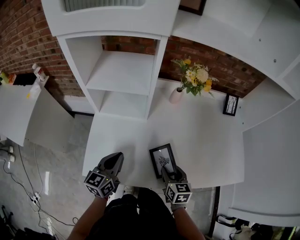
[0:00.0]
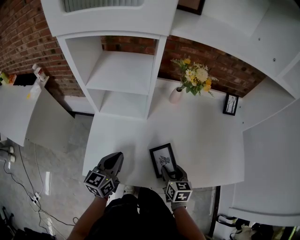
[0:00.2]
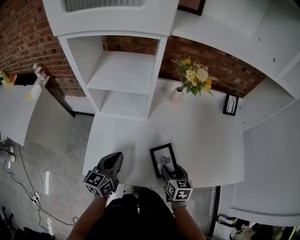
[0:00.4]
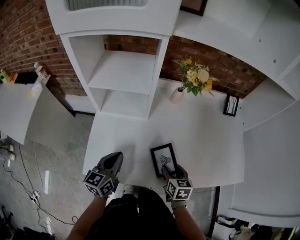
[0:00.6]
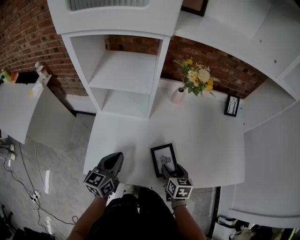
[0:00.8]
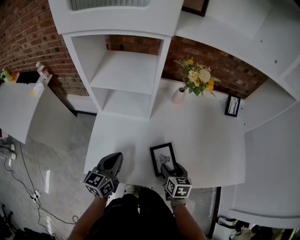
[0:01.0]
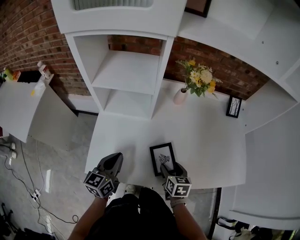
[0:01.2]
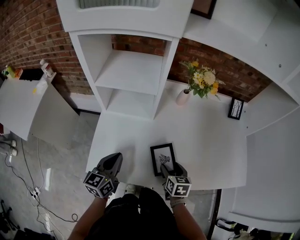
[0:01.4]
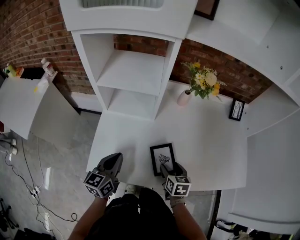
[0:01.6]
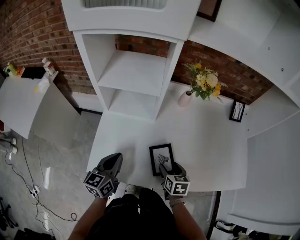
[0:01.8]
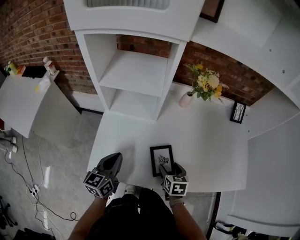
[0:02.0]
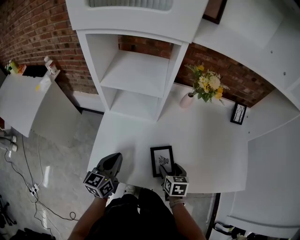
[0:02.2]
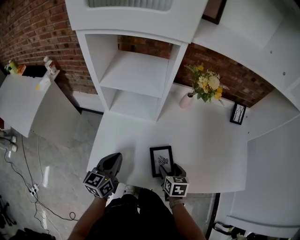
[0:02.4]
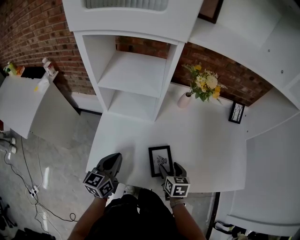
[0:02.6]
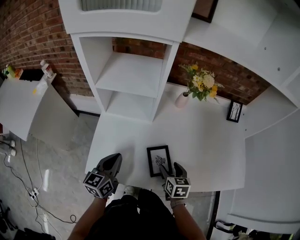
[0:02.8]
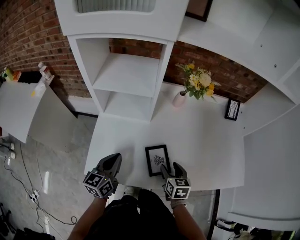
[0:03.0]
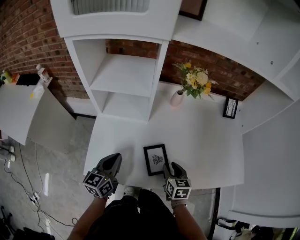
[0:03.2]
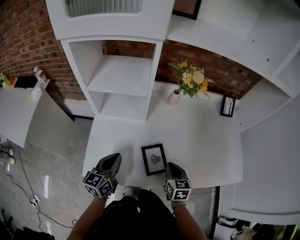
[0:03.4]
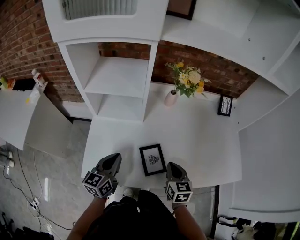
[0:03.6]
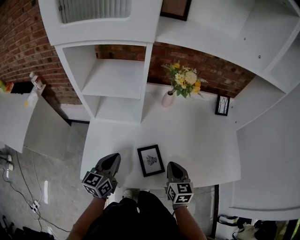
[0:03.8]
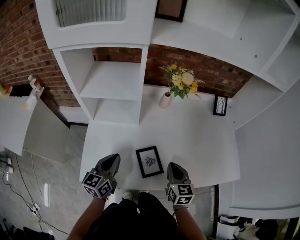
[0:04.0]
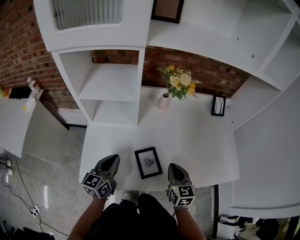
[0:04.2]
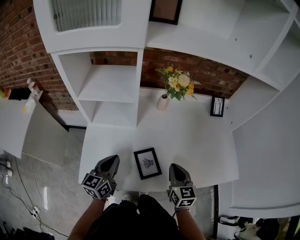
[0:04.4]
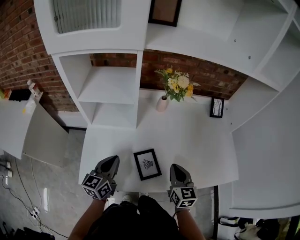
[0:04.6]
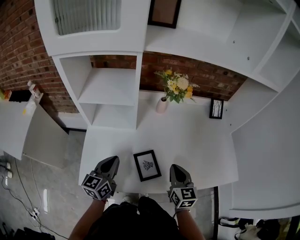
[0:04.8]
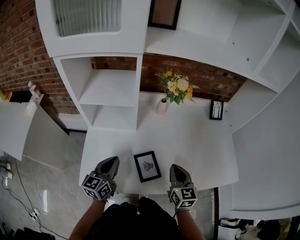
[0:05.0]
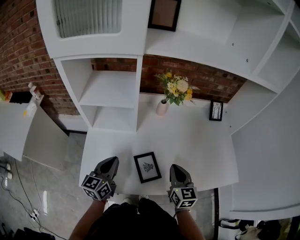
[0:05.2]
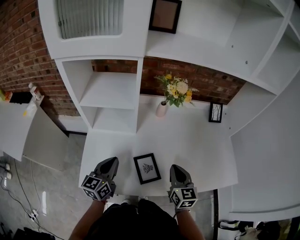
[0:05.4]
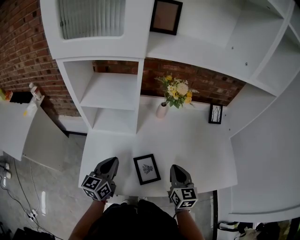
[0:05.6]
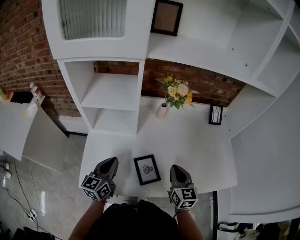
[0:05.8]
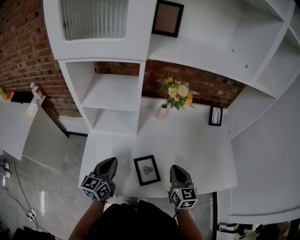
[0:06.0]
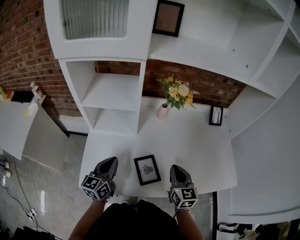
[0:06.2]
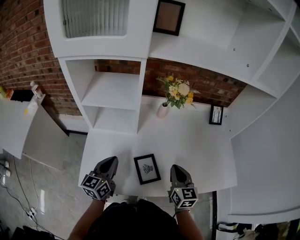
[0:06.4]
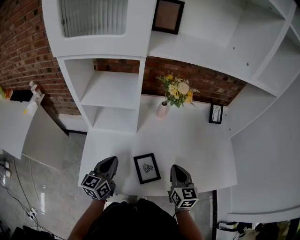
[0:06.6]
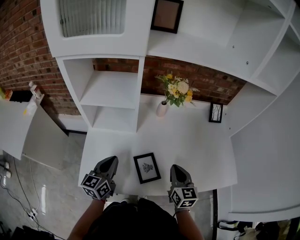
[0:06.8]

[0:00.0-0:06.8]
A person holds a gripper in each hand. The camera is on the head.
0:00.0 to 0:02.8: The grippers stay close to where they were, moving slightly.
0:02.8 to 0:04.0: The right gripper moves upward, approximately 10 cm, and closes its fingers.
0:04.0 to 0:05.4: The grippers move only a little.
0:05.4 to 0:06.8: Neither gripper changes place.

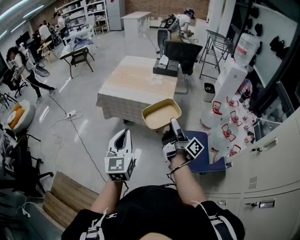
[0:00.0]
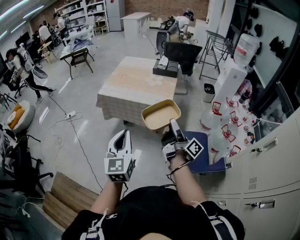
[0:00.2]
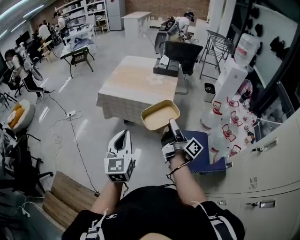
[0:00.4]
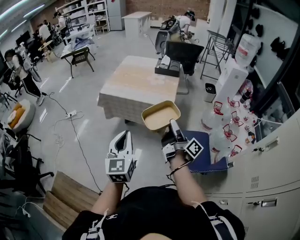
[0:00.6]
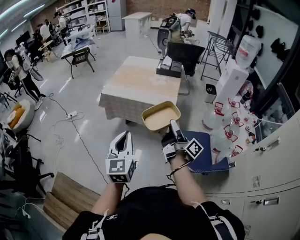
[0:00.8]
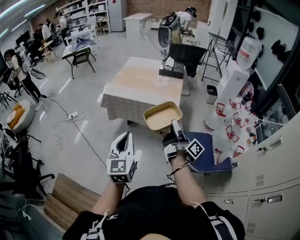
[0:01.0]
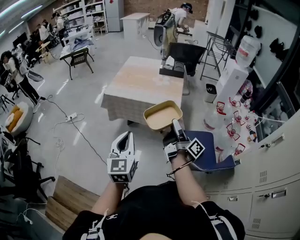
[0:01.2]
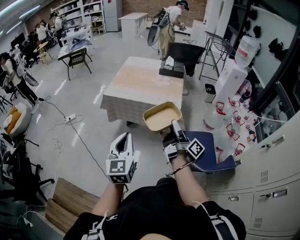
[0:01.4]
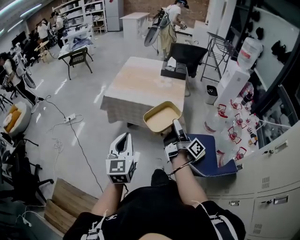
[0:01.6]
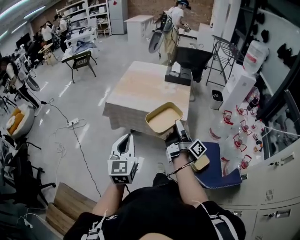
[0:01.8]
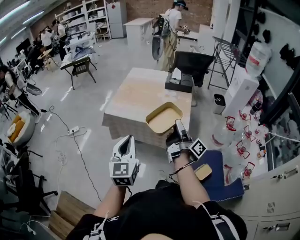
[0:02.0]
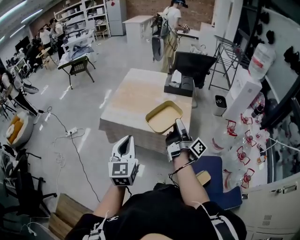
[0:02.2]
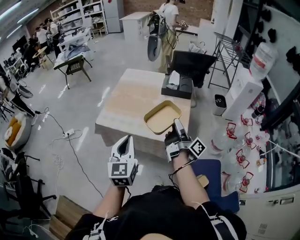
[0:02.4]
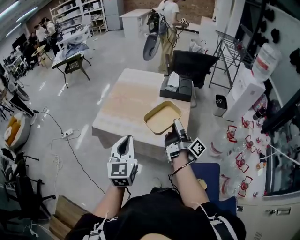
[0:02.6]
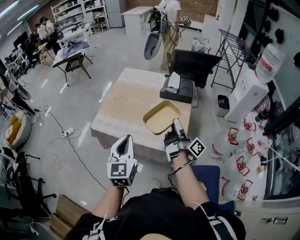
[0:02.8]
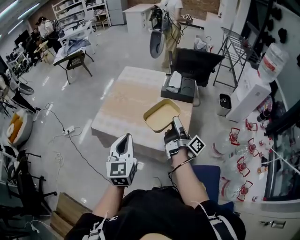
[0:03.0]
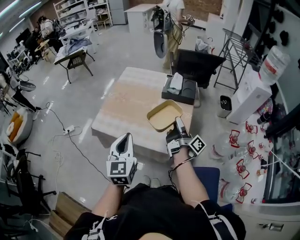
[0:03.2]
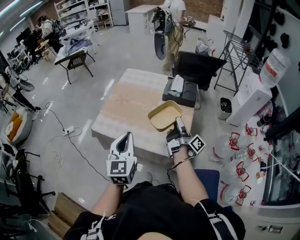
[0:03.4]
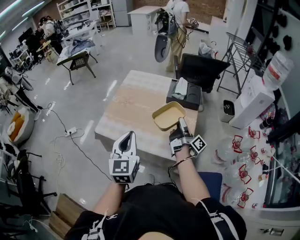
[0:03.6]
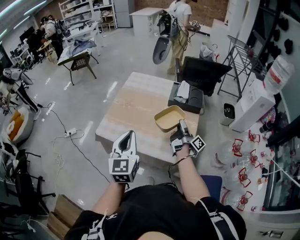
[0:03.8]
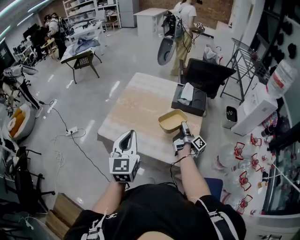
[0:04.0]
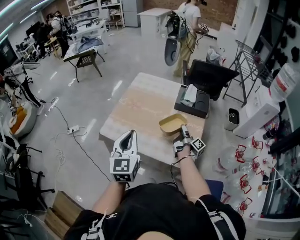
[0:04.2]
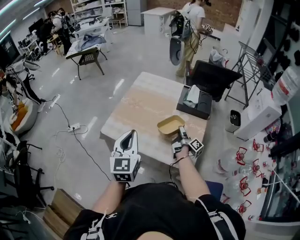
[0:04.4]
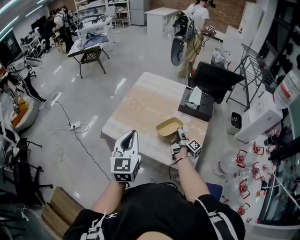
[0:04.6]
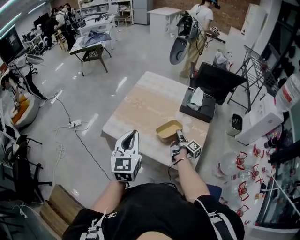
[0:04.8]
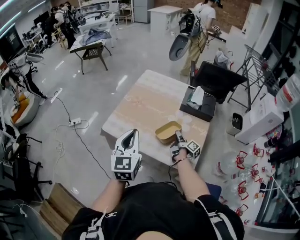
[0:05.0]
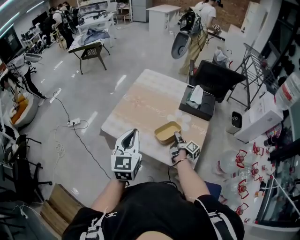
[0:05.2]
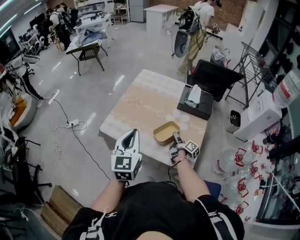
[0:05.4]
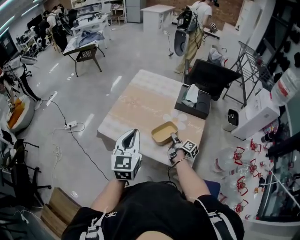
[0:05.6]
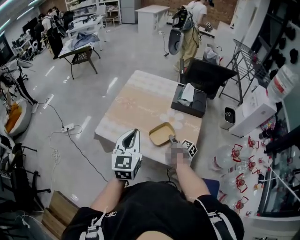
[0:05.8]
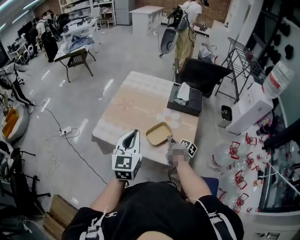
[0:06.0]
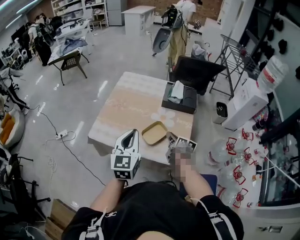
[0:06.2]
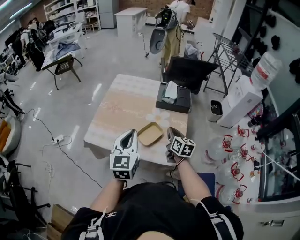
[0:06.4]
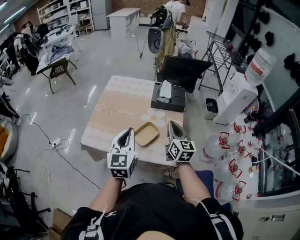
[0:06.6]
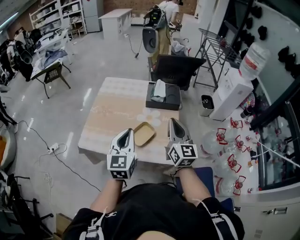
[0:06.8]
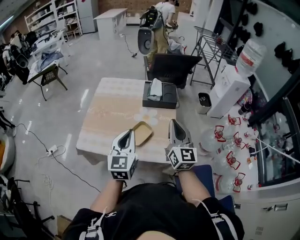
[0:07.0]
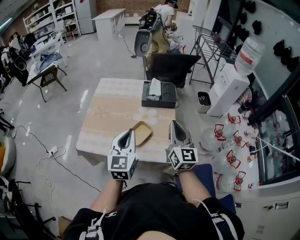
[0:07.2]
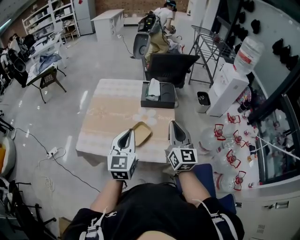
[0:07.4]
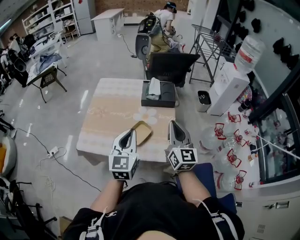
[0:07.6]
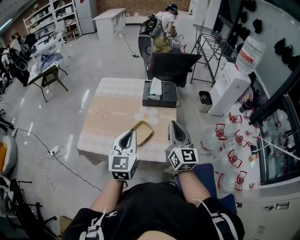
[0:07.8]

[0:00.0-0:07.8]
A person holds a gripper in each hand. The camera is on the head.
0:00.0 to 0:01.6: The left gripper moves approximately 15 cm.
0:01.6 to 0:03.2: The left gripper ends up approximately 50 cm from where it was.
0:03.2 to 0:04.6: The left gripper ends up roughly 10 cm from where it was.
0:04.6 to 0:06.2: The left gripper shifts by roughly 5 cm.
0:06.2 to 0:07.8: The left gripper ends up approximately 10 cm from where it was.

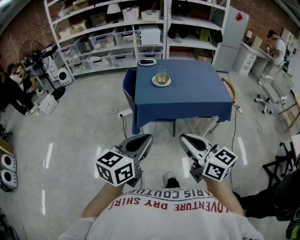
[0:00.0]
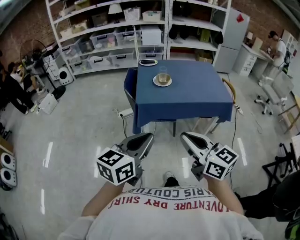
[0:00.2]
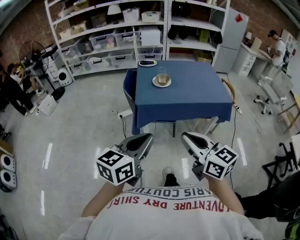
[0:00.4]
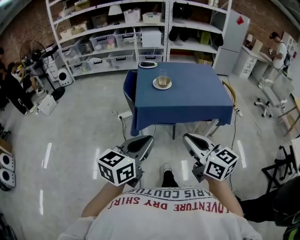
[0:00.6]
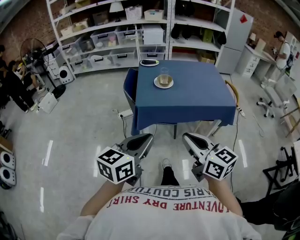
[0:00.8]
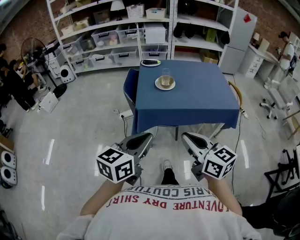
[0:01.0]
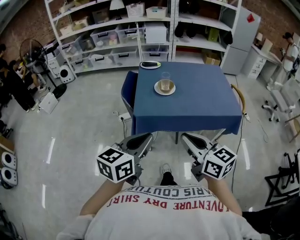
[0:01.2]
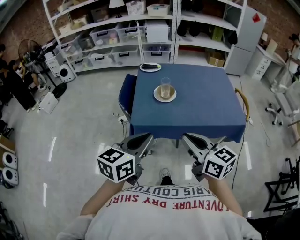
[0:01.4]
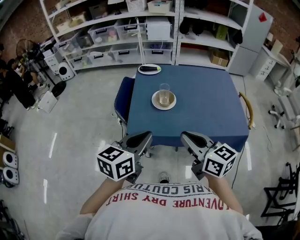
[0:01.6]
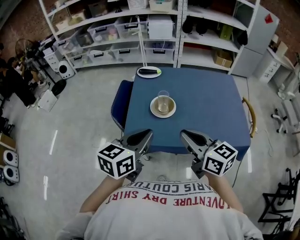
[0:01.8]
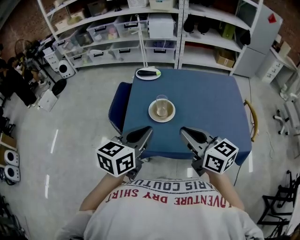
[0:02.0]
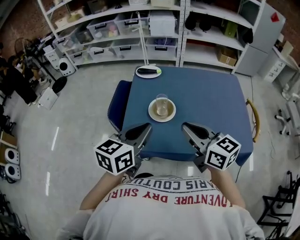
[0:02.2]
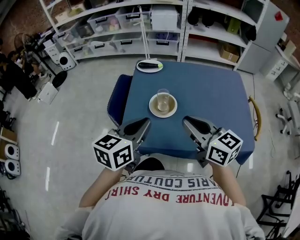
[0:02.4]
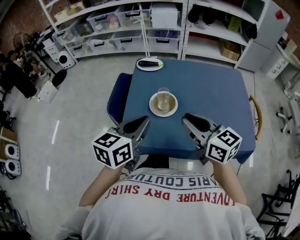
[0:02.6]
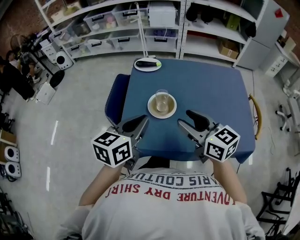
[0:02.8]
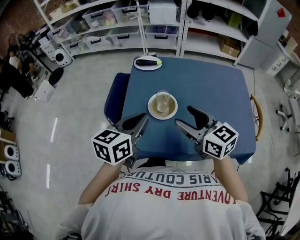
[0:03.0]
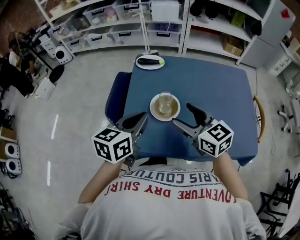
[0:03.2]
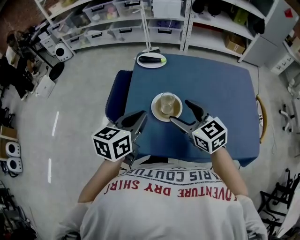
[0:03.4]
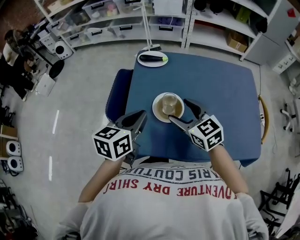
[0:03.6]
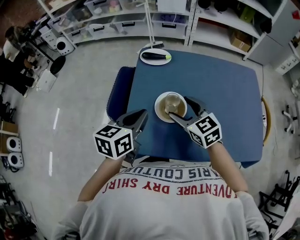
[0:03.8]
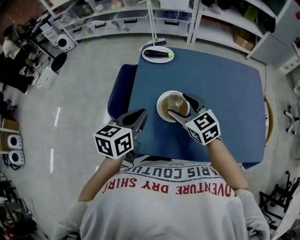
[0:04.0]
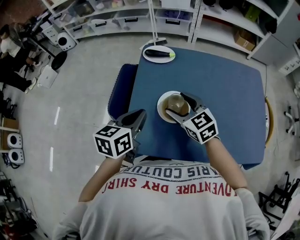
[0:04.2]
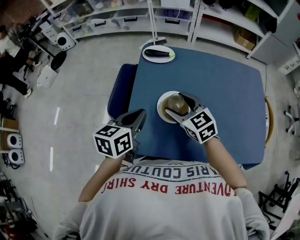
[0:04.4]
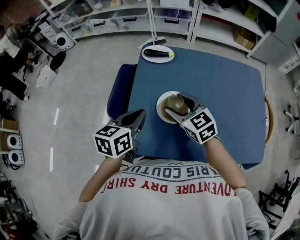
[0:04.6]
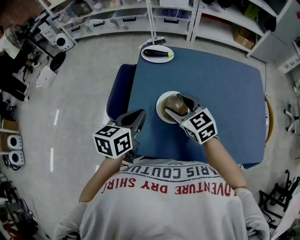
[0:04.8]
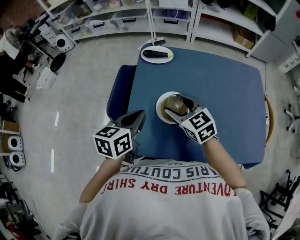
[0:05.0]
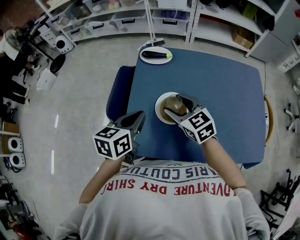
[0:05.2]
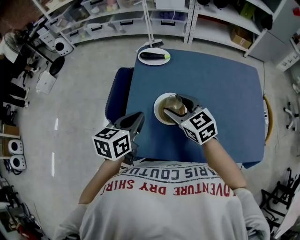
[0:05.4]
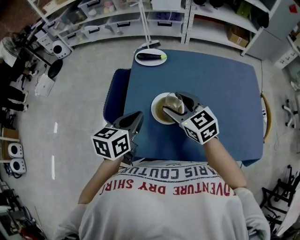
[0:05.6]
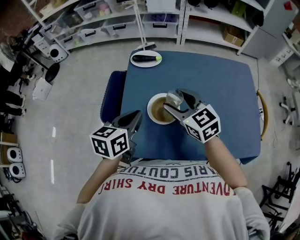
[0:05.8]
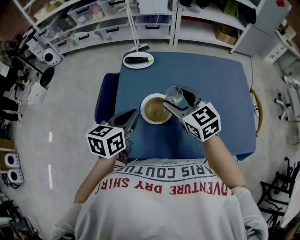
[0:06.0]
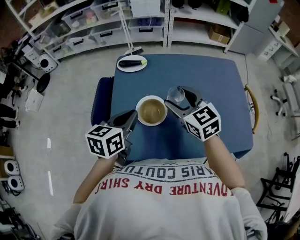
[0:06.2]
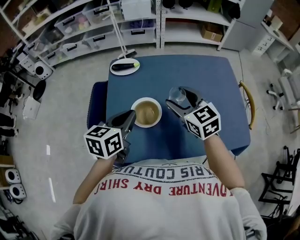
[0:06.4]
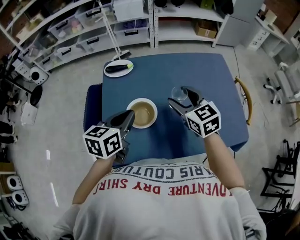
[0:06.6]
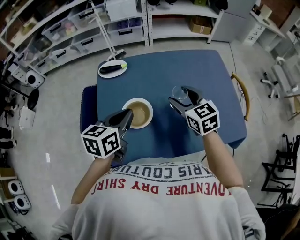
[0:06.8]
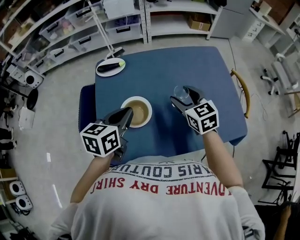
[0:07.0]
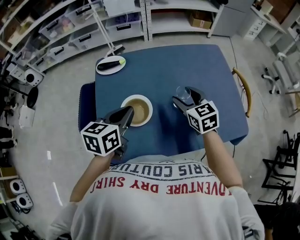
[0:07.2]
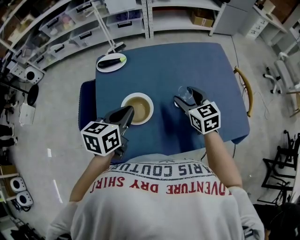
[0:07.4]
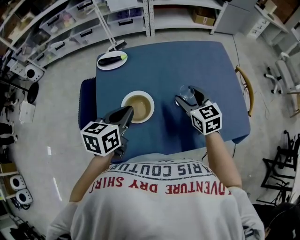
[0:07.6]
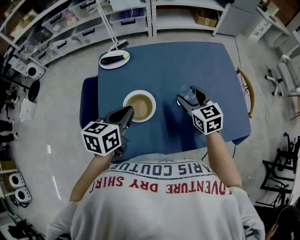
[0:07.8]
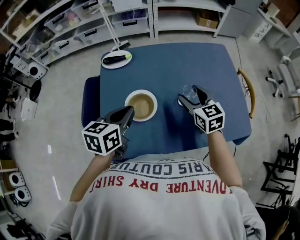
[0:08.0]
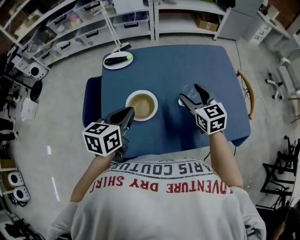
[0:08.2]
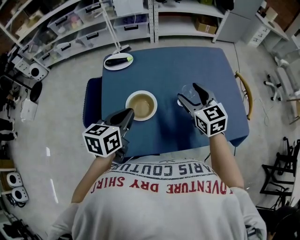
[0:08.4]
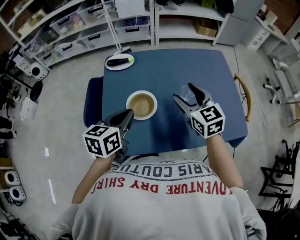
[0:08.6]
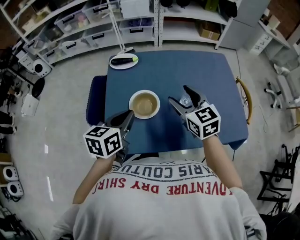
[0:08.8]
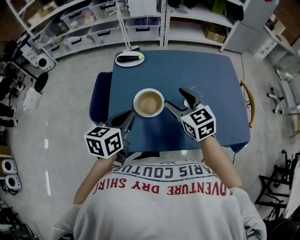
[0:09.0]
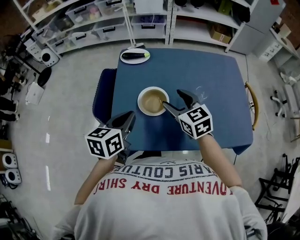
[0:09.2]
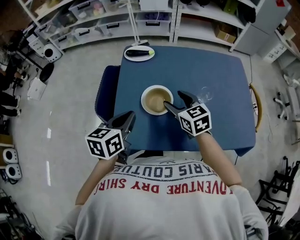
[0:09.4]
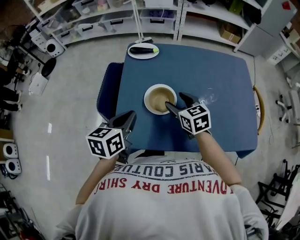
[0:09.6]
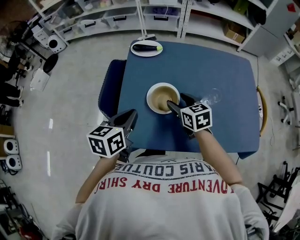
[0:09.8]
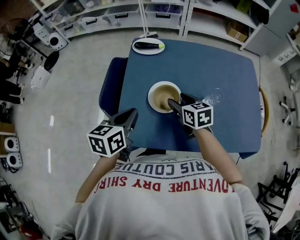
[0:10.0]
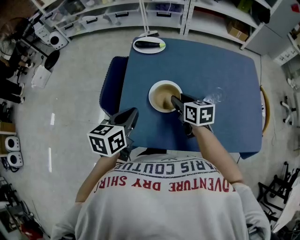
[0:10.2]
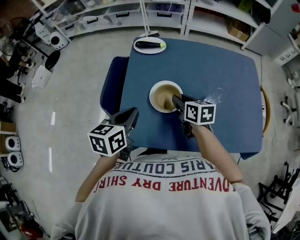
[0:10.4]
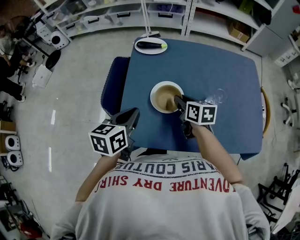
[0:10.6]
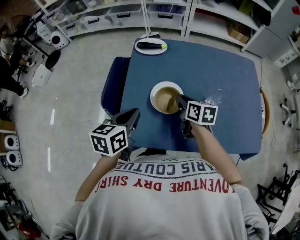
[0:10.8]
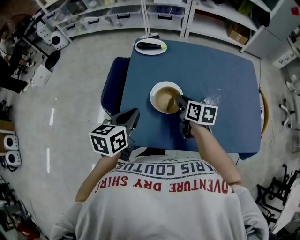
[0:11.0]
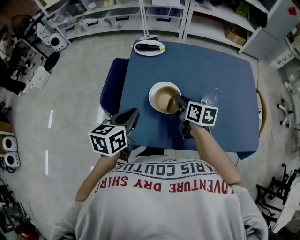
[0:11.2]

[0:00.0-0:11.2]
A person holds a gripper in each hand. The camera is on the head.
0:00.0 to 0:01.6: Both grippers move forward, some 30 cm.
0:01.6 to 0:03.2: The two grippers go approximately 20 cm forward. The right gripper opens.
0:03.2 to 0:04.8: The left gripper goes some 10 cm downward and forward. Meanwhile the right gripper is displaced forward, downward and to the left by some 15 cm.
0:04.8 to 0:06.4: The right gripper heads to the right and upward, covering roughly 15 cm. The left gripper is displaced to the right by some 5 cm.
0:06.4 to 0:08.0: The right gripper shifts some 10 cm to the right and downward.
0:08.0 to 0:09.6: The left gripper goes some 10 cm to the left and backward. Meanwhile the right gripper travels to the left by roughly 15 cm.
0:09.6 to 0:11.2: The right gripper turns by approximately 30 degrees, and closes.
